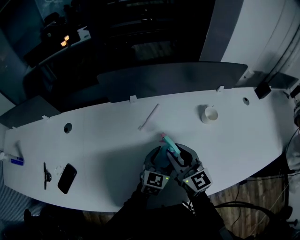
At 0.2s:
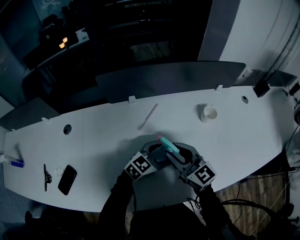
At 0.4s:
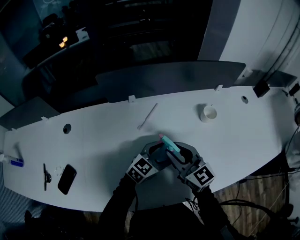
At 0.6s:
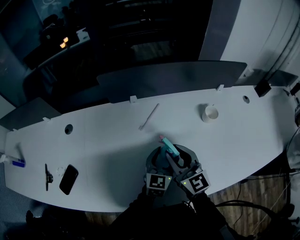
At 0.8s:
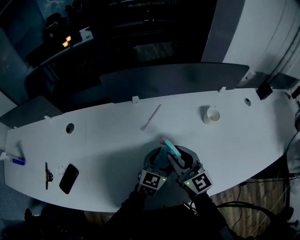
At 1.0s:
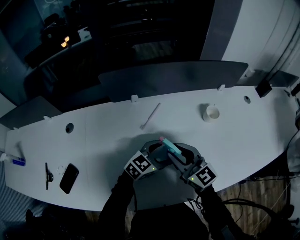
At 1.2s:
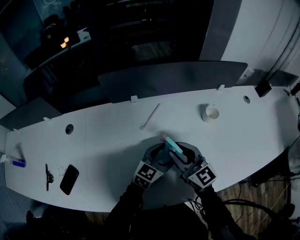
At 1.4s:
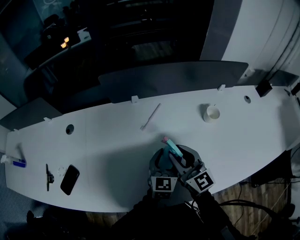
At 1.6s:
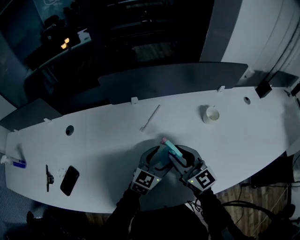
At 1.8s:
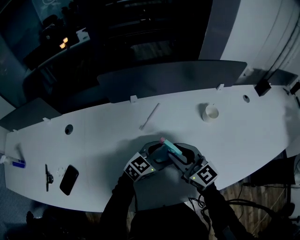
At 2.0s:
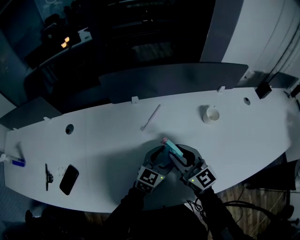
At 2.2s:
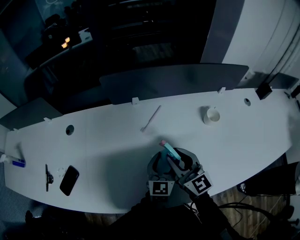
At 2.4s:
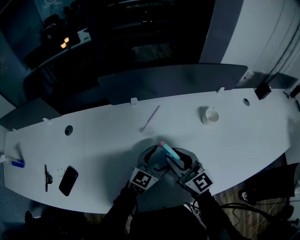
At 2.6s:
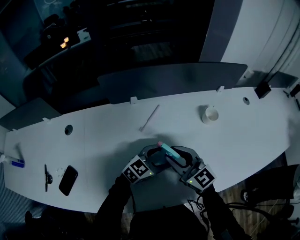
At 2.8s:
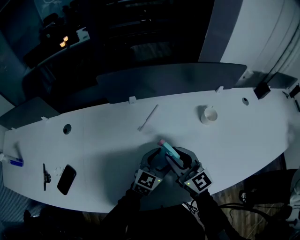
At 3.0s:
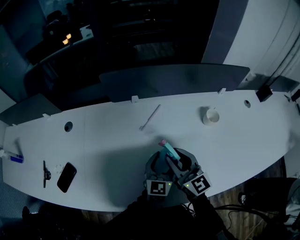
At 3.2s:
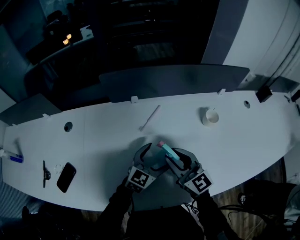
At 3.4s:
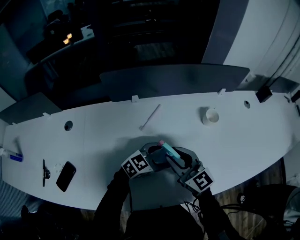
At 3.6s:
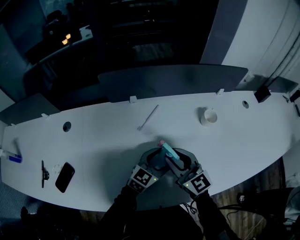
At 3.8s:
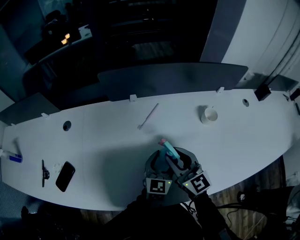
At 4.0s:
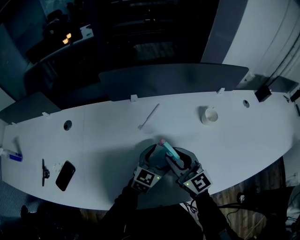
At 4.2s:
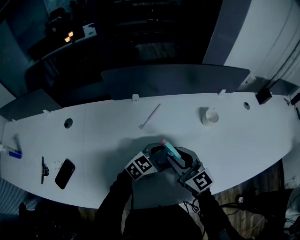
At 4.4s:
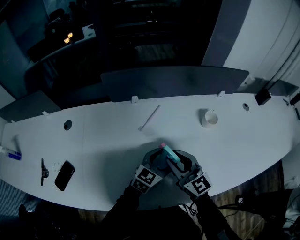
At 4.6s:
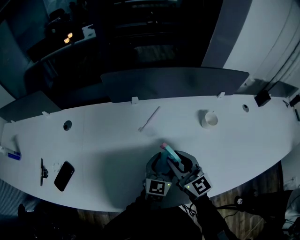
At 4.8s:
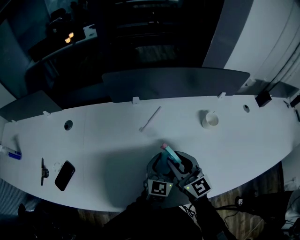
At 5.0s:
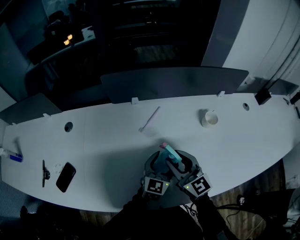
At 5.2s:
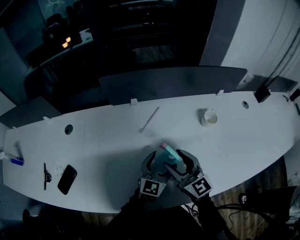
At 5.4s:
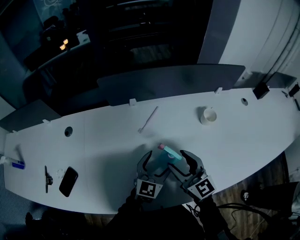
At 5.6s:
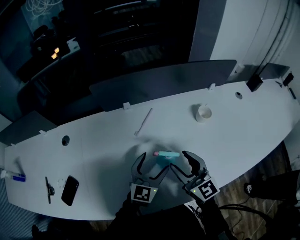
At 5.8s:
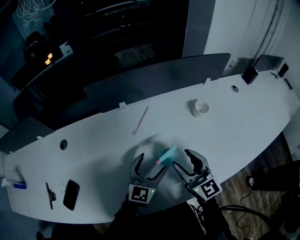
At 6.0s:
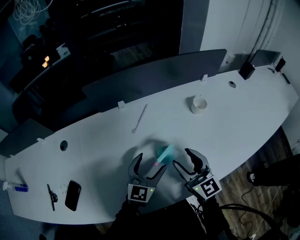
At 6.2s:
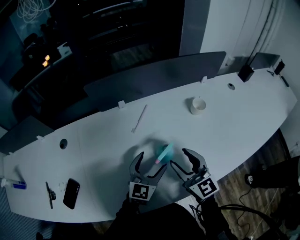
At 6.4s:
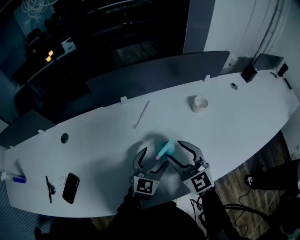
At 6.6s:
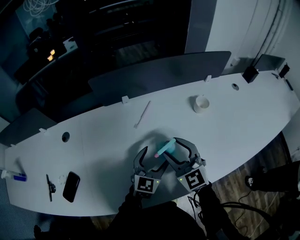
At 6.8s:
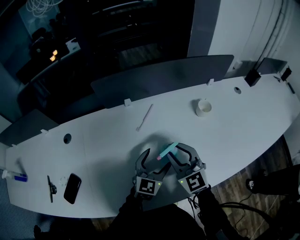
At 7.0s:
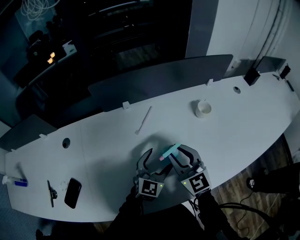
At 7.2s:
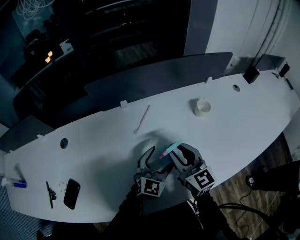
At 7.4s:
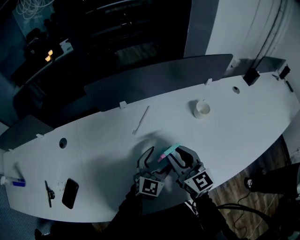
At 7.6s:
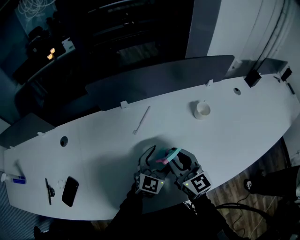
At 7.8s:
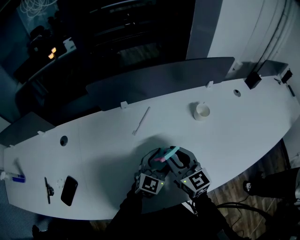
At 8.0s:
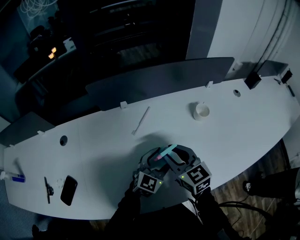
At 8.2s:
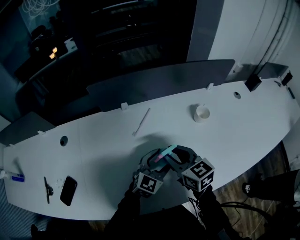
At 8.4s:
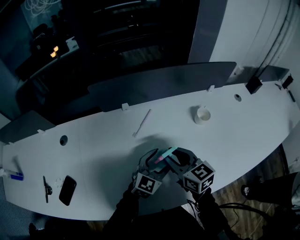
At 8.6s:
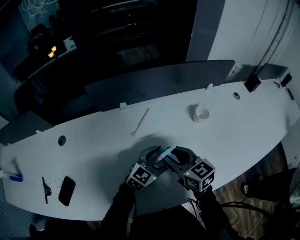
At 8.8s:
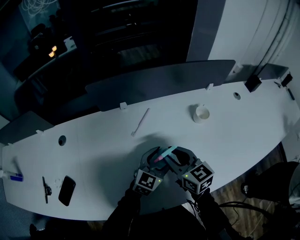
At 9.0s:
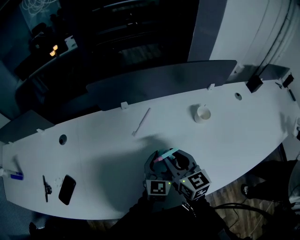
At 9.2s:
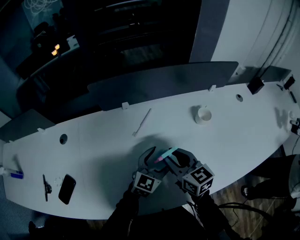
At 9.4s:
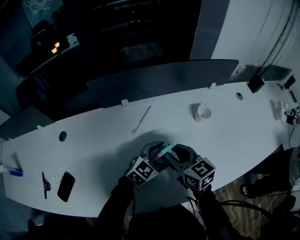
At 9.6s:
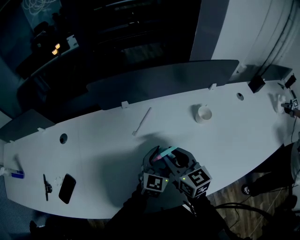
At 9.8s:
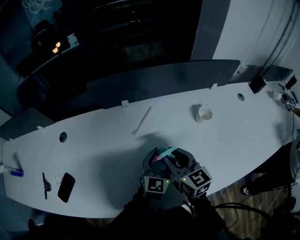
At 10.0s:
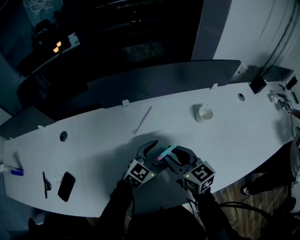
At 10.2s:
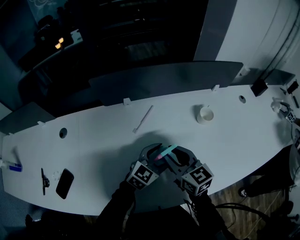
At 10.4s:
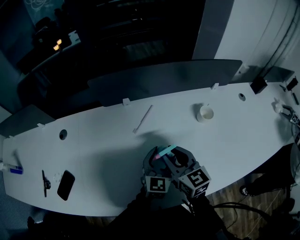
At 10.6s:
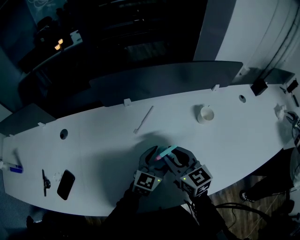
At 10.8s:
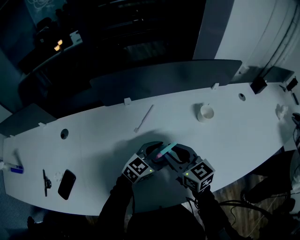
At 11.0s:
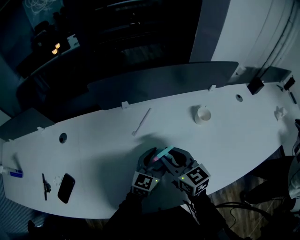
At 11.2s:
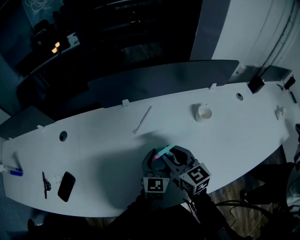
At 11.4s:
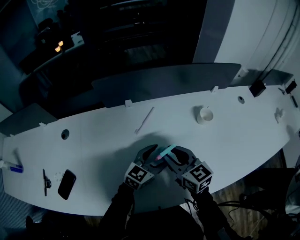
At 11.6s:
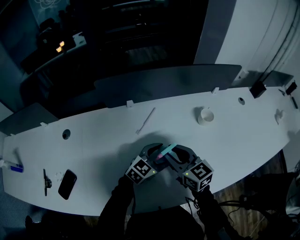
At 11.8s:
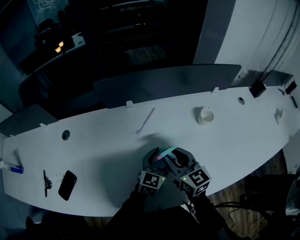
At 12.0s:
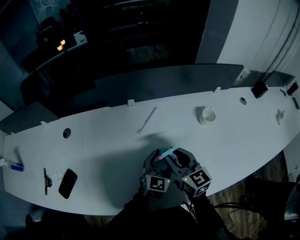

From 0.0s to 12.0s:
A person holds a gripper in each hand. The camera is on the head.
From 1.6s to 3.0s: The left gripper swivels about 20 degrees.
From 3.0s to 4.4s: The left gripper rotates about 30 degrees.
From 4.4s to 6.0s: The right gripper moves roughly 5 cm, and opens; the left gripper moves to the left, roughly 5 cm.
From 6.0s to 7.6s: The right gripper moves about 5 cm, and closes; the left gripper moves to the right, about 5 cm.
From 7.6s to 9.0s: The left gripper turns by about 20 degrees.

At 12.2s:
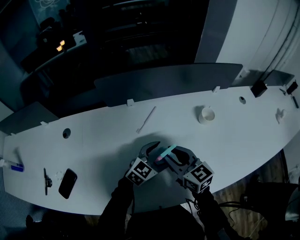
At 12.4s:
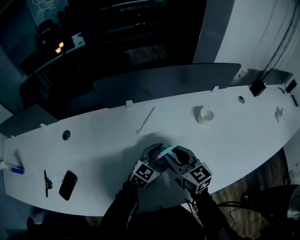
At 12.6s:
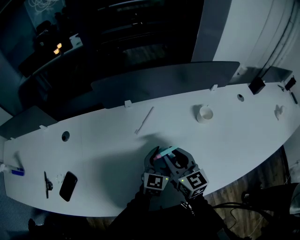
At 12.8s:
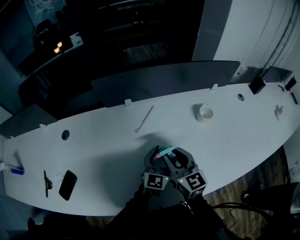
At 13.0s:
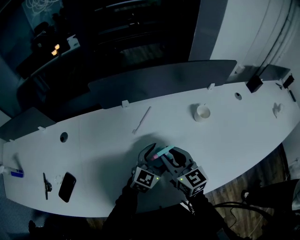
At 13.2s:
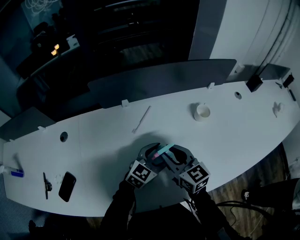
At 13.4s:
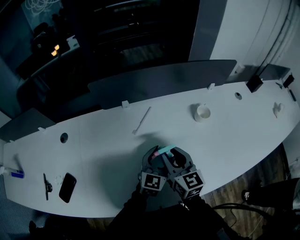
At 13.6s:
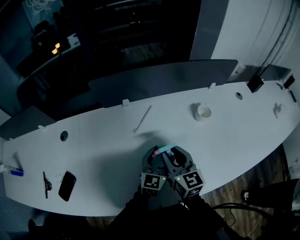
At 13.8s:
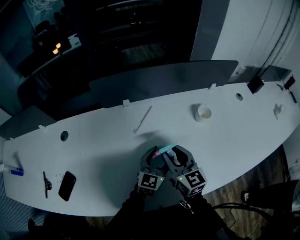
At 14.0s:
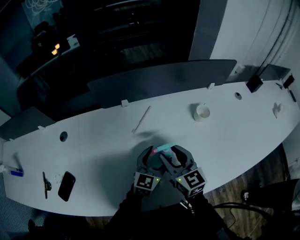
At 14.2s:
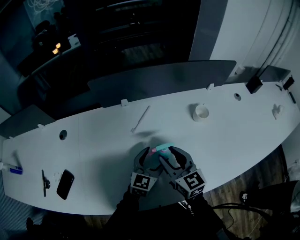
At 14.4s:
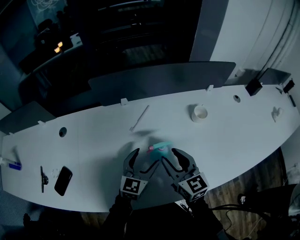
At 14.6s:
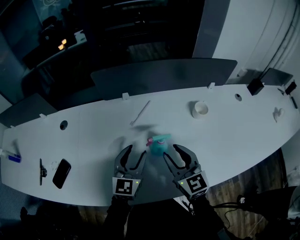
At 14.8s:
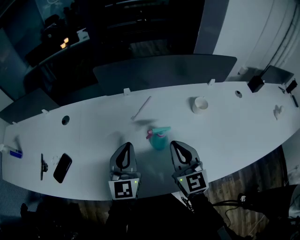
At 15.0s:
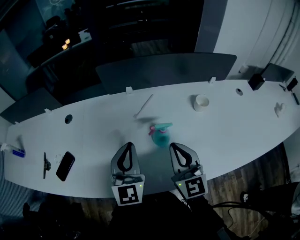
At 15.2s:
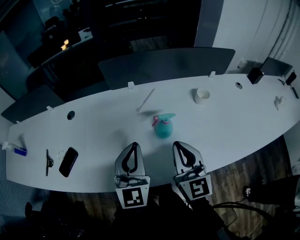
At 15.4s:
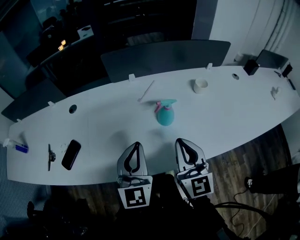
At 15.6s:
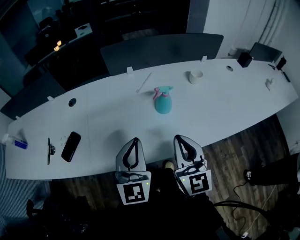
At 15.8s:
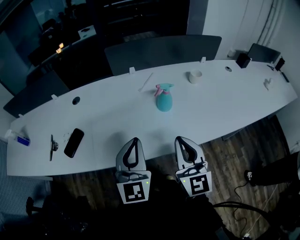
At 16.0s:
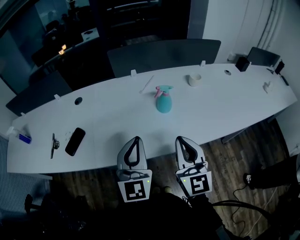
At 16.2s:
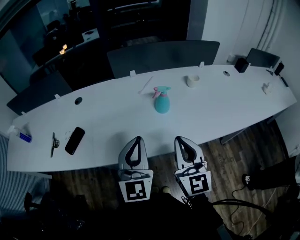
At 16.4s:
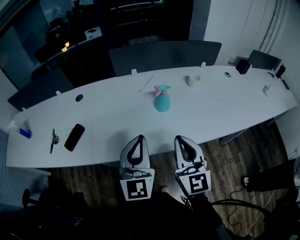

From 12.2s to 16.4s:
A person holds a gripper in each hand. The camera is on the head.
From 12.2s to 13.6s: The left gripper turns by about 30 degrees.
From 13.6s to 15.0s: The left gripper goes about 20 cm upward, to the left and backward, swivels about 30 degrees, and closes; the right gripper is displaced backward and upward by some 10 cm, and closes its fingers.
From 15.0s to 16.4s: Both grippers travel together backward, roughly 20 cm.

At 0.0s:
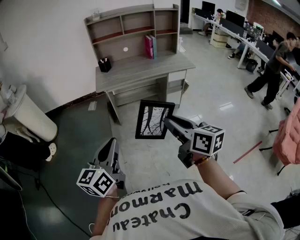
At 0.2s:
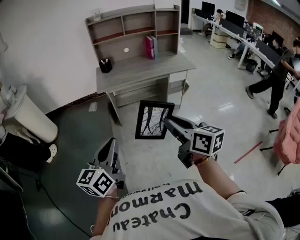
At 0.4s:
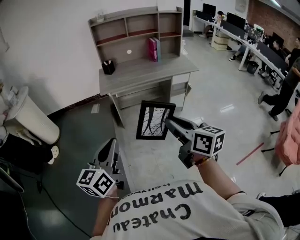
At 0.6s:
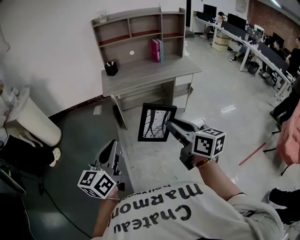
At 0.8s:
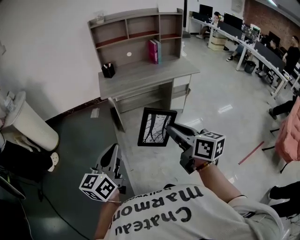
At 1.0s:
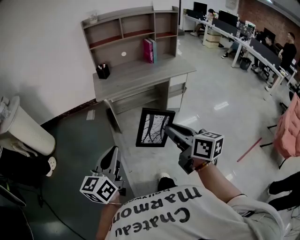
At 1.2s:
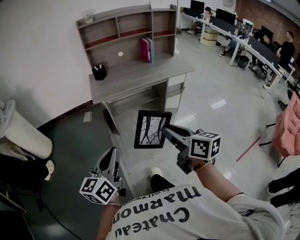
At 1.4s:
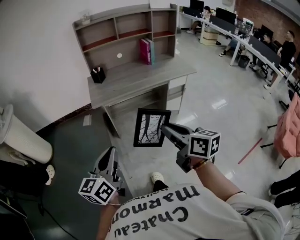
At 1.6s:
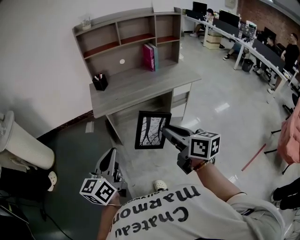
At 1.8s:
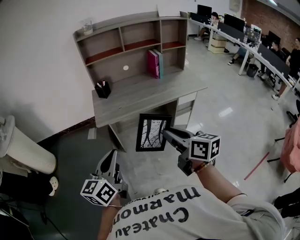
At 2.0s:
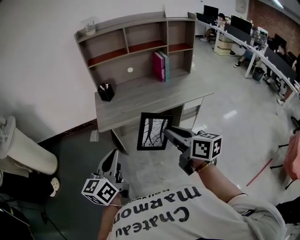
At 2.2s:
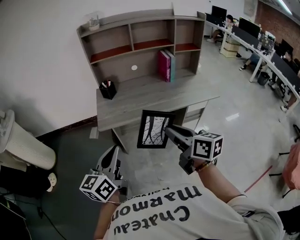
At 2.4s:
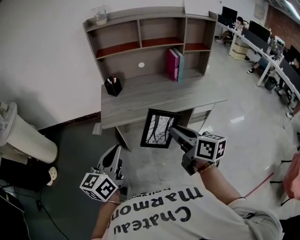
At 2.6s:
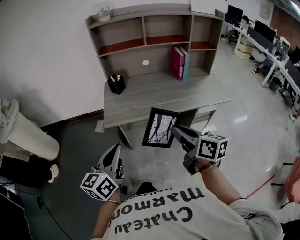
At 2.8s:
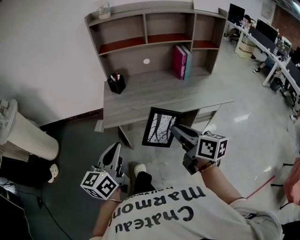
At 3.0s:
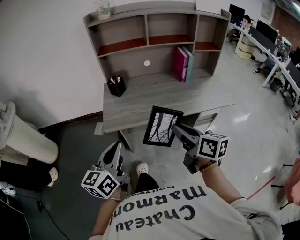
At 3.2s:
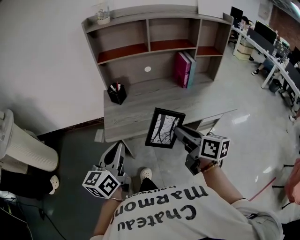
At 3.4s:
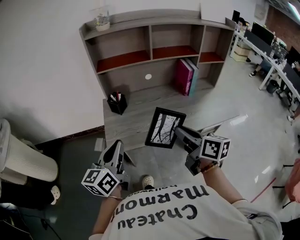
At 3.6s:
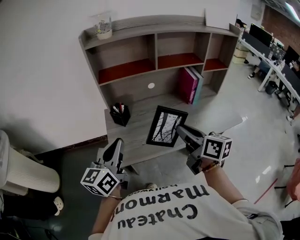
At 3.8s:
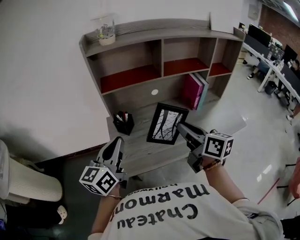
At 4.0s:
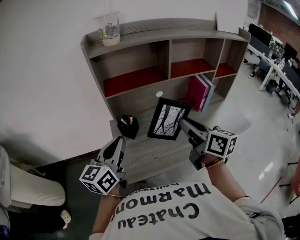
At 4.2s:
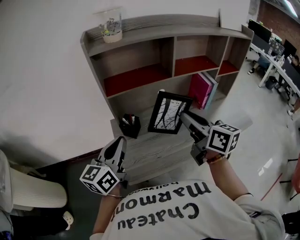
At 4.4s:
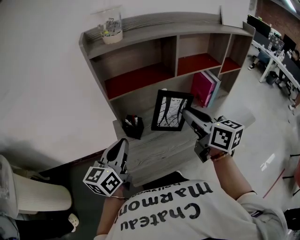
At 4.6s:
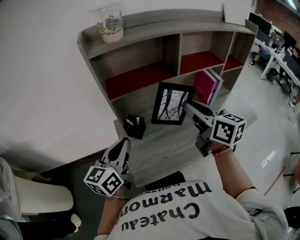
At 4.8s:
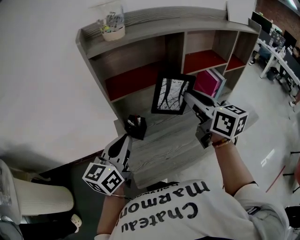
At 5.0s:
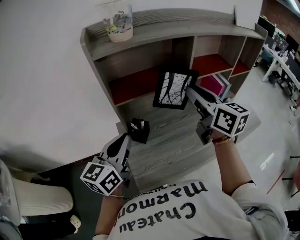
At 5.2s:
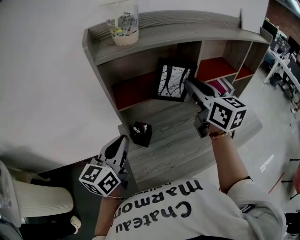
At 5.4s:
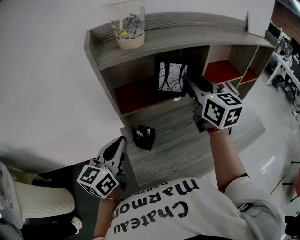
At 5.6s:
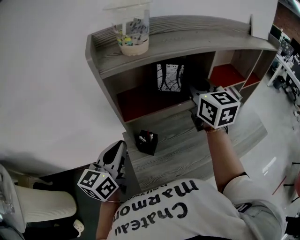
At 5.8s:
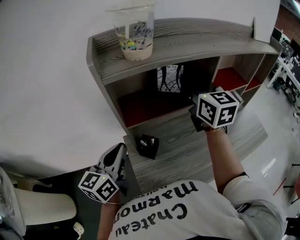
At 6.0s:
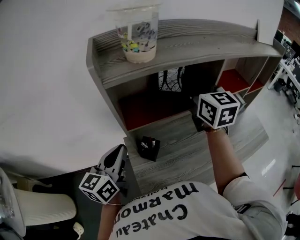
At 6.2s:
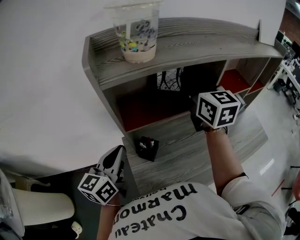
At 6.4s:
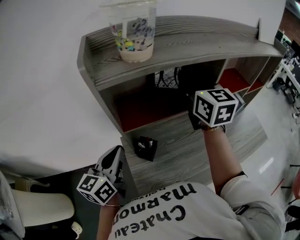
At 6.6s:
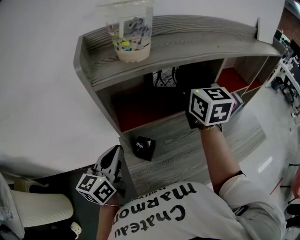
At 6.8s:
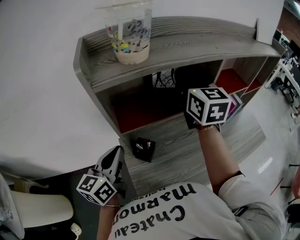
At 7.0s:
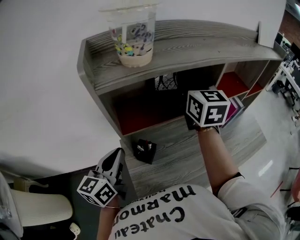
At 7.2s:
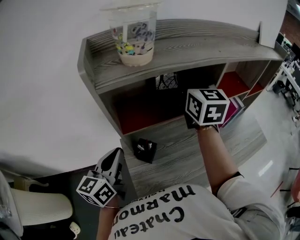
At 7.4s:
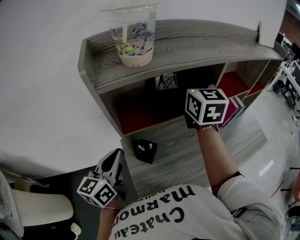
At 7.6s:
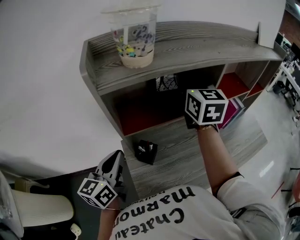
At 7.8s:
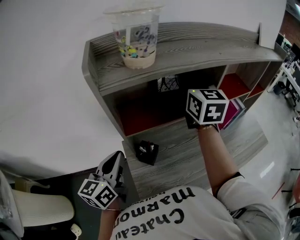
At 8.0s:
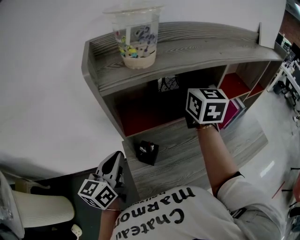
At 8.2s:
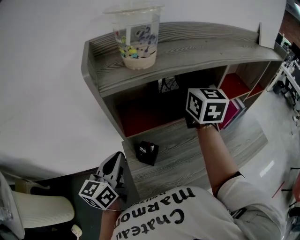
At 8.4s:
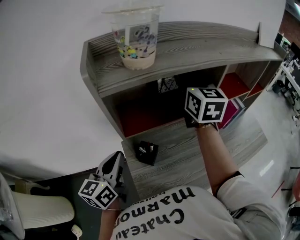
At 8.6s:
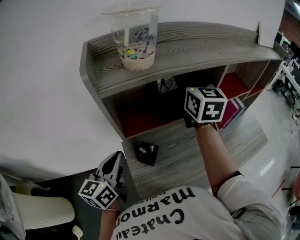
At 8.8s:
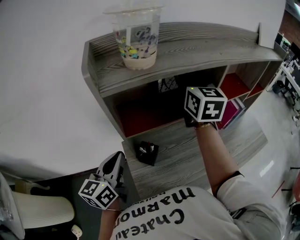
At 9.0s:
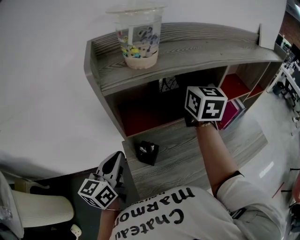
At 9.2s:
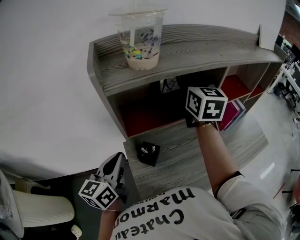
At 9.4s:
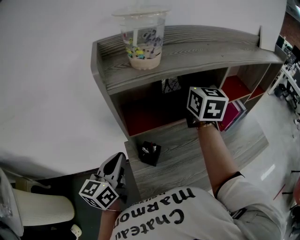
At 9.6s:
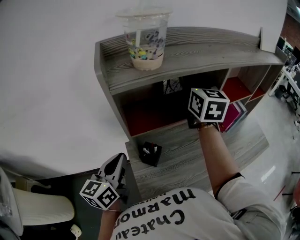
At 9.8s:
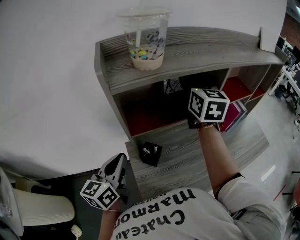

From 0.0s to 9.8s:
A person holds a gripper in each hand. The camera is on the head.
From 0.0s to 1.4s: Both grippers move forward and to the left, roughly 15 cm.
From 1.4s to 2.8s: The two grippers go some 30 cm forward.
From 2.8s to 4.2s: Both grippers move forward, approximately 35 cm.
From 4.2s to 5.6s: The right gripper travels forward by about 25 cm, and swivels some 30 degrees. The left gripper heads forward and to the left, covering roughly 15 cm.
From 5.6s to 7.0s: The right gripper heads forward, covering approximately 5 cm.
From 7.0s to 8.4s: The grippers move only a little.
From 8.4s to 9.8s: The two grippers keep their place.
